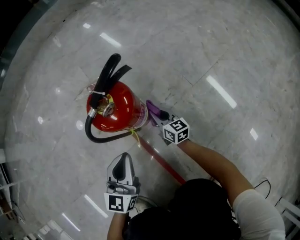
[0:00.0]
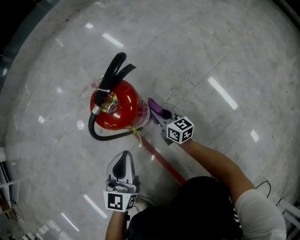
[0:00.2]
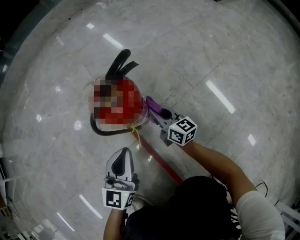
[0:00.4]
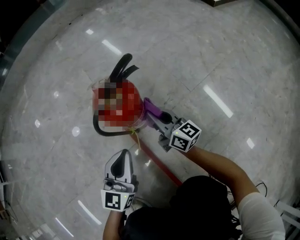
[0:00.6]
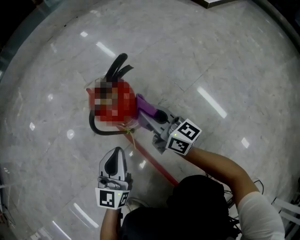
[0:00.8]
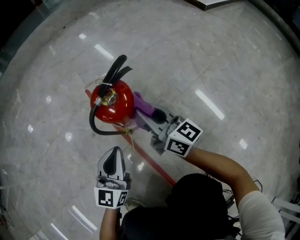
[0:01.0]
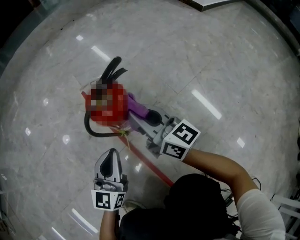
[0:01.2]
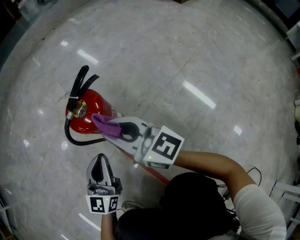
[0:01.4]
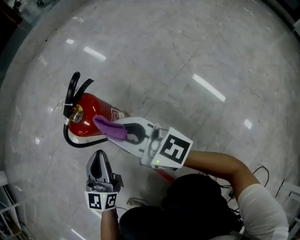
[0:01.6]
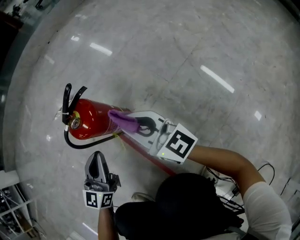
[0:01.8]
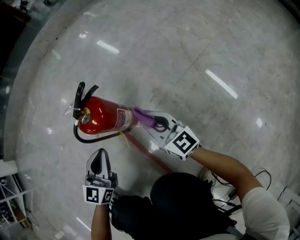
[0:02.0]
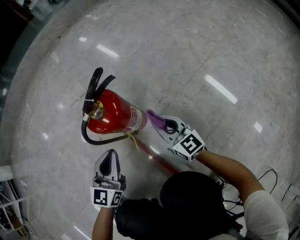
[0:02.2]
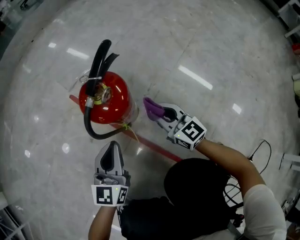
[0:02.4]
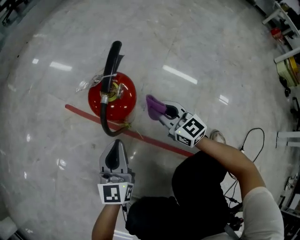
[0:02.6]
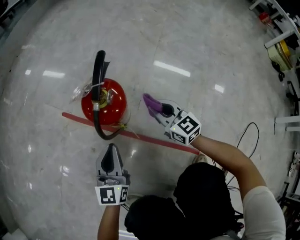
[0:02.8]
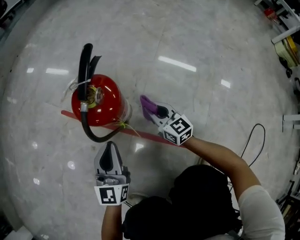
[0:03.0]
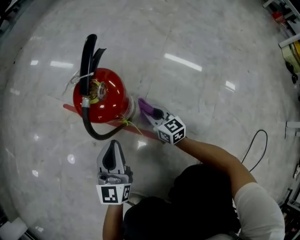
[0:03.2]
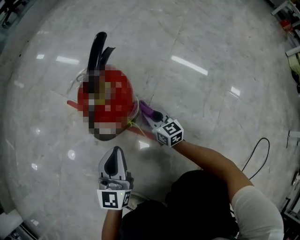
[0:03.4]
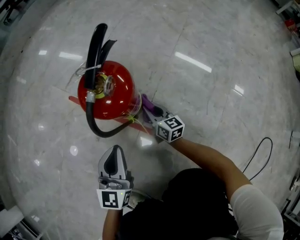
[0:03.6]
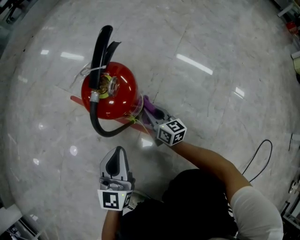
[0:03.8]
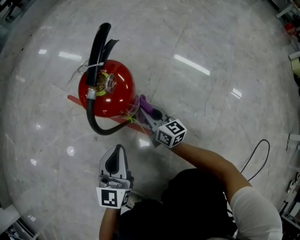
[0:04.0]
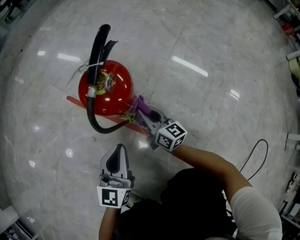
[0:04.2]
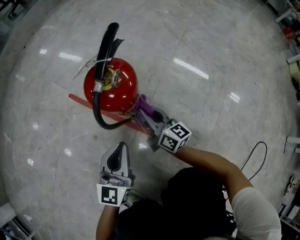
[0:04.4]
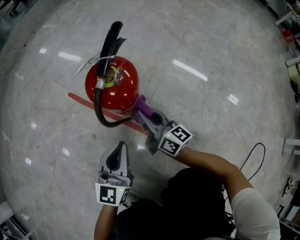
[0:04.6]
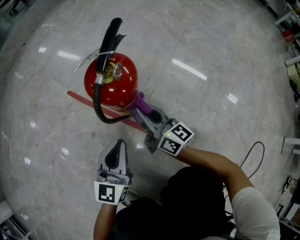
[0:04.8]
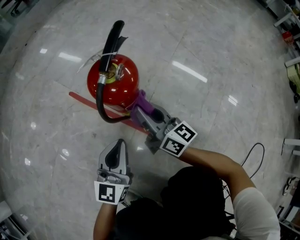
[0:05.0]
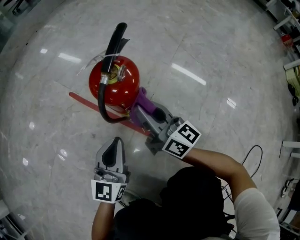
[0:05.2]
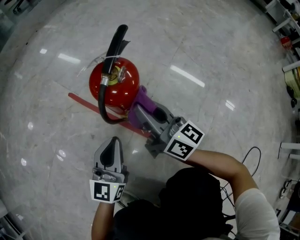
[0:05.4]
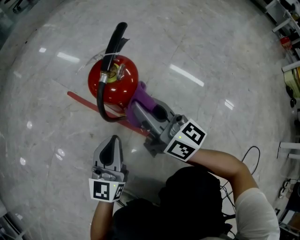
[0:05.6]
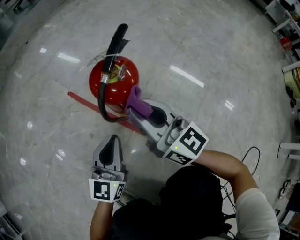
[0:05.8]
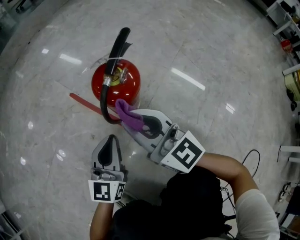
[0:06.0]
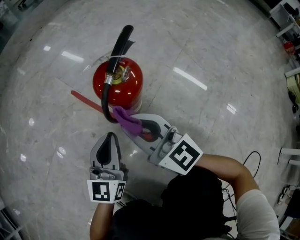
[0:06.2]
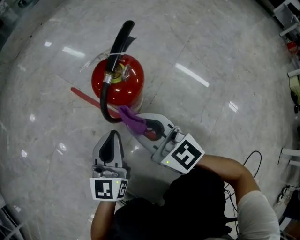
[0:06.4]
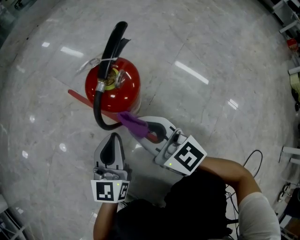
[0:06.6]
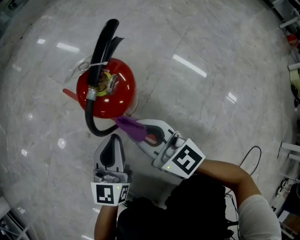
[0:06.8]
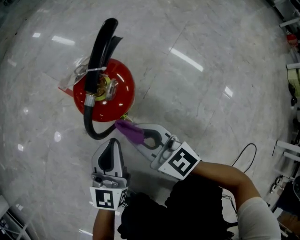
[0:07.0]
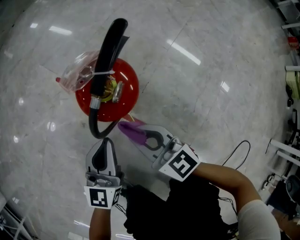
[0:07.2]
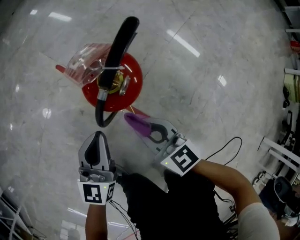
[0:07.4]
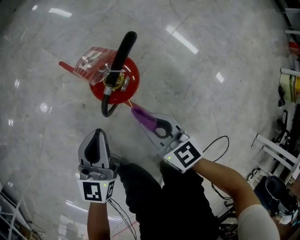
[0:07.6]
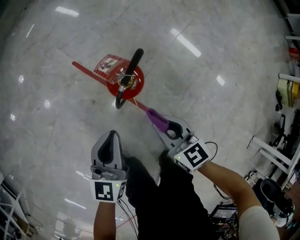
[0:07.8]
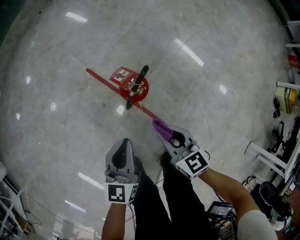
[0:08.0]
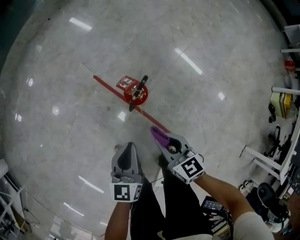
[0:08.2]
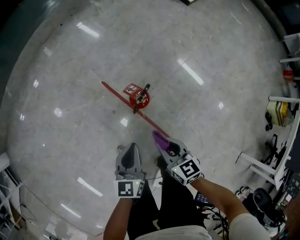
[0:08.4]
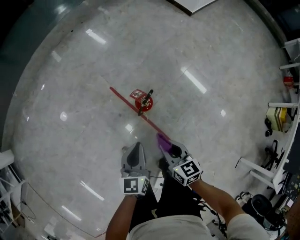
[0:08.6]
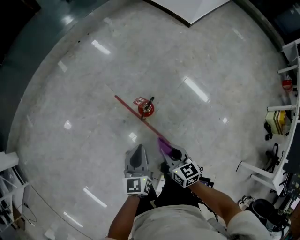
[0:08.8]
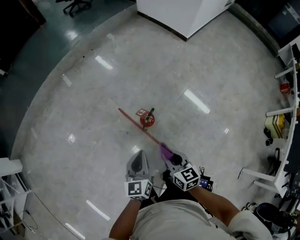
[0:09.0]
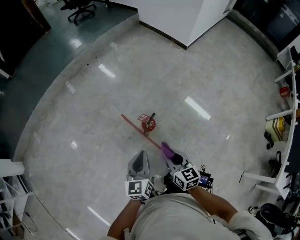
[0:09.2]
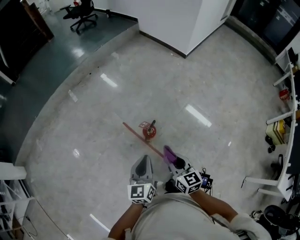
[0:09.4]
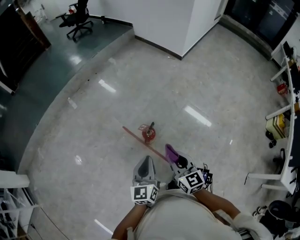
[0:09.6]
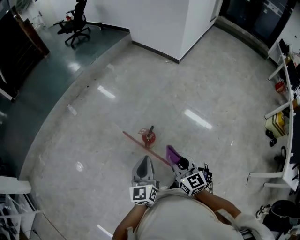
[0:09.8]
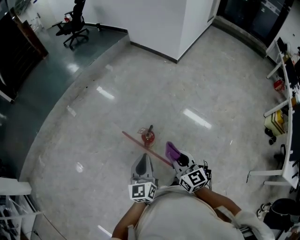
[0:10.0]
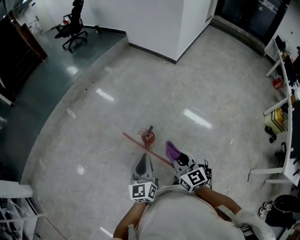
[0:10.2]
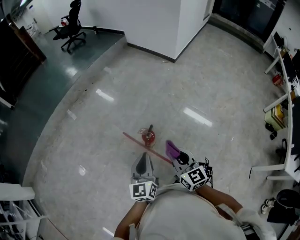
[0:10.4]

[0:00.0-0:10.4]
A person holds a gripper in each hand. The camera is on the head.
0:00.0 to 0:01.4: The right gripper is displaced upward by roughly 30 cm, and turns by about 30 degrees.
0:01.4 to 0:03.0: The left gripper moves about 5 cm, and swivels about 20 degrees. The right gripper travels downward by some 20 cm, and turns by about 50 degrees.
0:03.0 to 0:04.4: The right gripper heads to the left, covering roughly 5 cm, travels downward and back again, approximately 10 cm each way, and turns by approximately 30 degrees.
0:04.4 to 0:06.0: The right gripper travels upward by some 20 cm, and rotates some 30 degrees.
0:06.0 to 0:07.4: The right gripper travels downward by some 10 cm, and turns by some 30 degrees.
0:07.4 to 0:09.0: The two grippers go approximately 60 cm upward.
0:09.0 to 0:10.4: The two grippers go approximately 10 cm upward. The right gripper changes its angle by about 20 degrees.

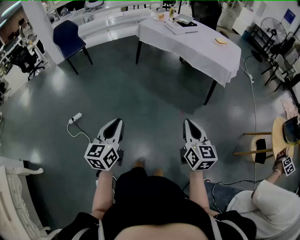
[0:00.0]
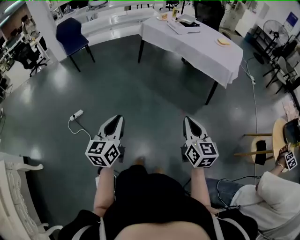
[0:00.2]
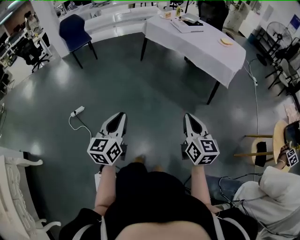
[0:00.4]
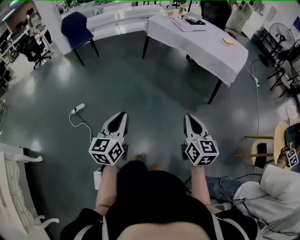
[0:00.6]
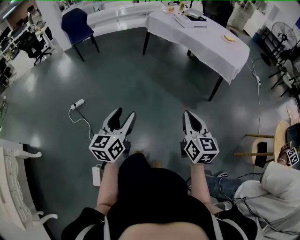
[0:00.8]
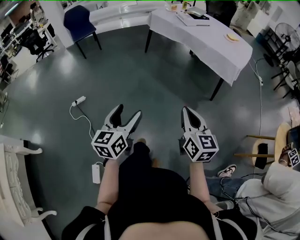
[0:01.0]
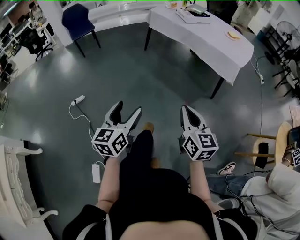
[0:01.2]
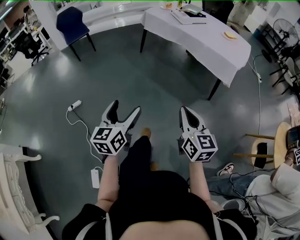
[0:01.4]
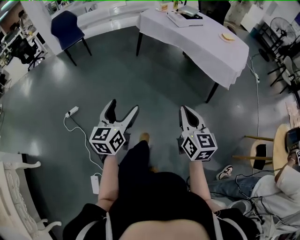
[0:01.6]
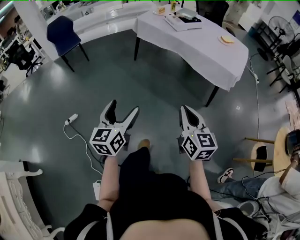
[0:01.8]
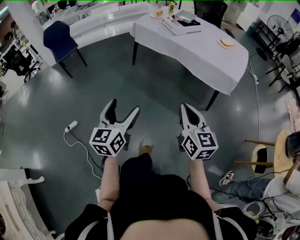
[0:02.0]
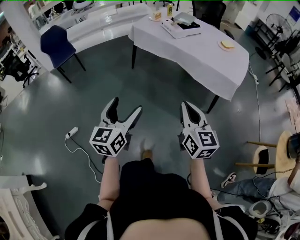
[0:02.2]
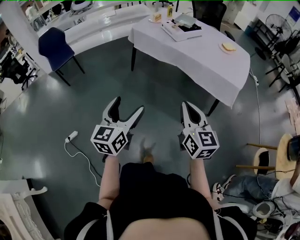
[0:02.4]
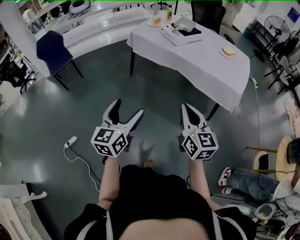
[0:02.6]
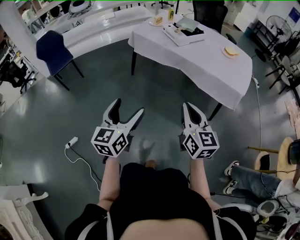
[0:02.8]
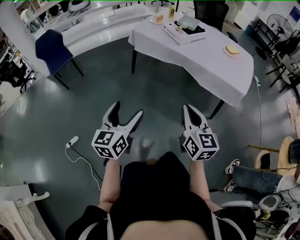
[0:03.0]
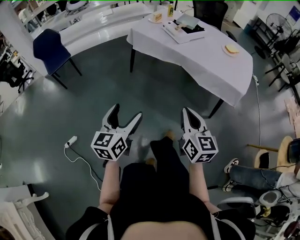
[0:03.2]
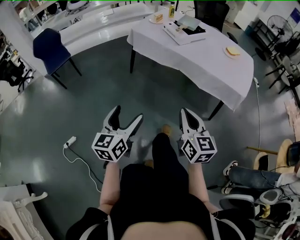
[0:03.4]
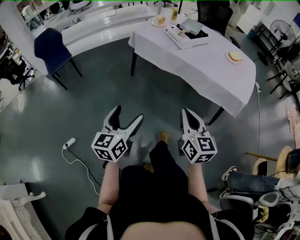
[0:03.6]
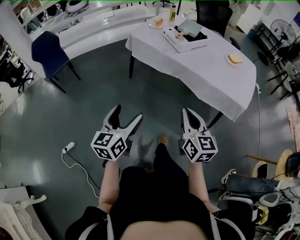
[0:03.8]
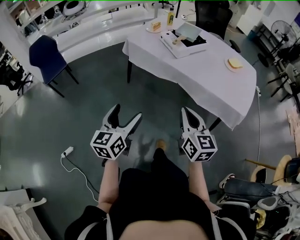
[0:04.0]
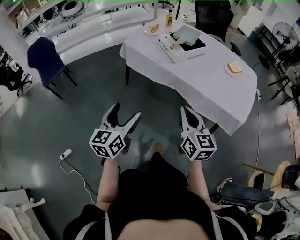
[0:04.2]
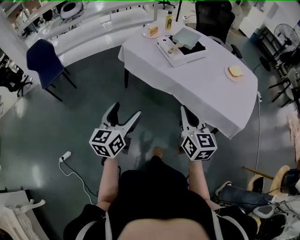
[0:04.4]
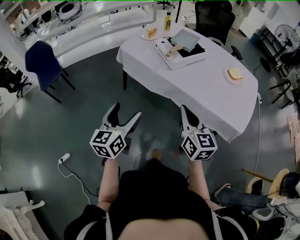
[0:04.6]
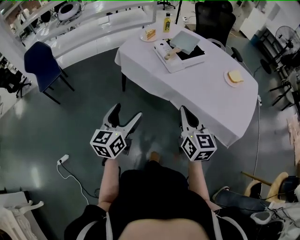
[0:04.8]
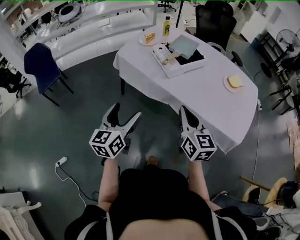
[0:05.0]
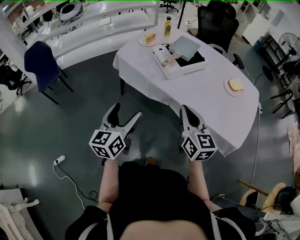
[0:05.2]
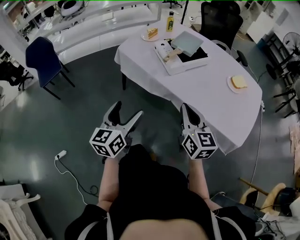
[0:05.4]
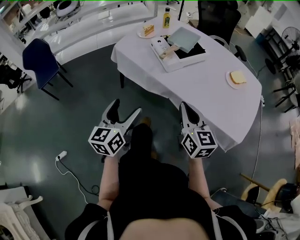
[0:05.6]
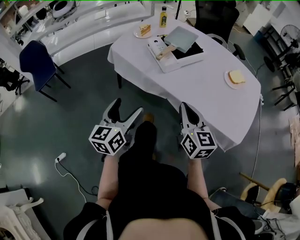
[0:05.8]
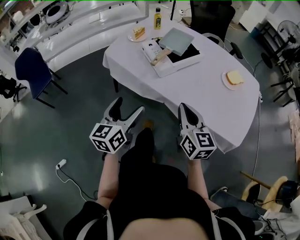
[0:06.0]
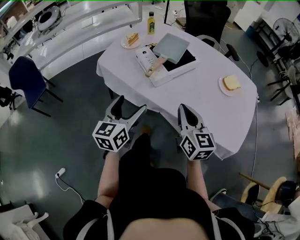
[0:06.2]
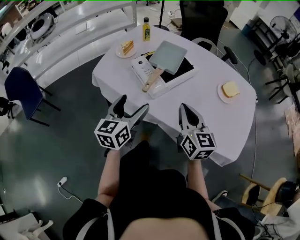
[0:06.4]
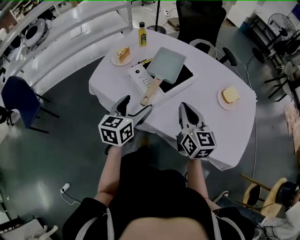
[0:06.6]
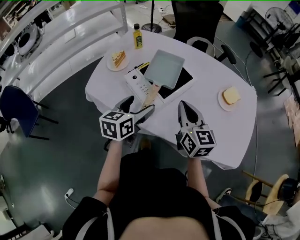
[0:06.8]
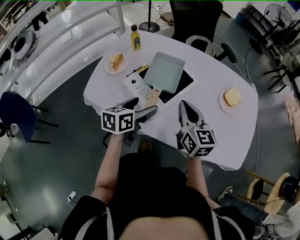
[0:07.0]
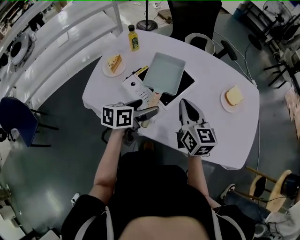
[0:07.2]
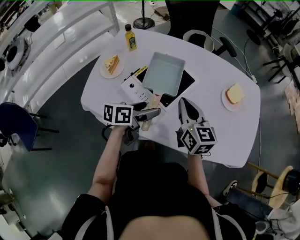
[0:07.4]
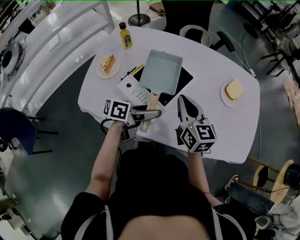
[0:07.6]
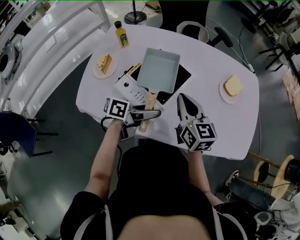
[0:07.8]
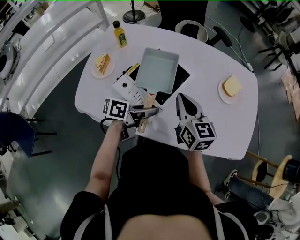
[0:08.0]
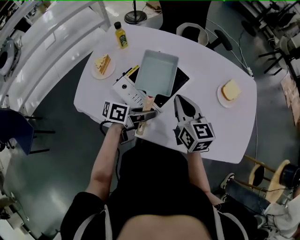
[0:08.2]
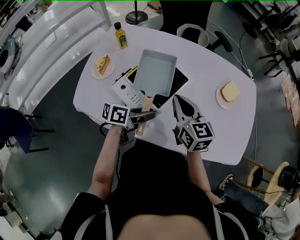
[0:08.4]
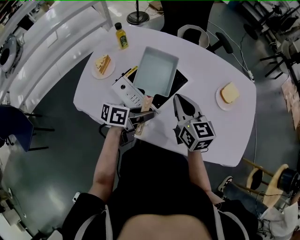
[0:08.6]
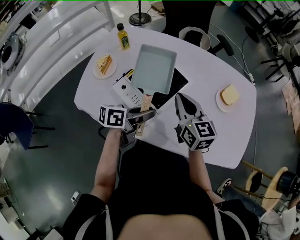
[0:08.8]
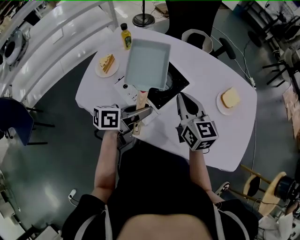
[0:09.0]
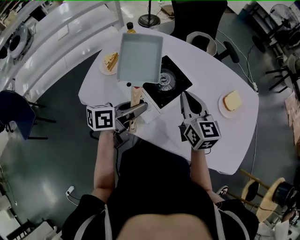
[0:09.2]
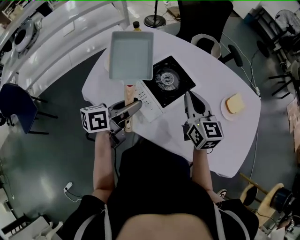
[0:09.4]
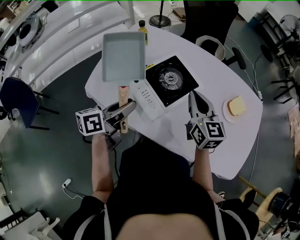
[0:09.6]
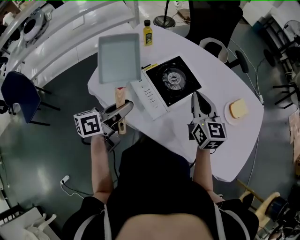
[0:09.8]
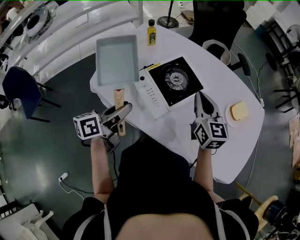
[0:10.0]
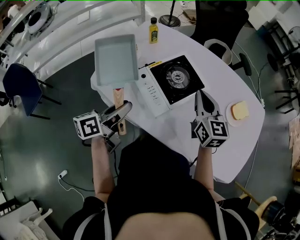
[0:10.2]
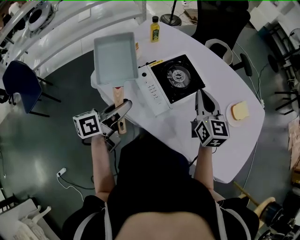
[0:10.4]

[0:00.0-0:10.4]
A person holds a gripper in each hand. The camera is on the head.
0:00.0 to 0:01.4: The right gripper goes approximately 5 cm forward, while the left gripper goes some 10 cm to the right and forward, and opens.
0:01.4 to 0:03.0: Both grippers move forward, some 35 cm.
0:03.0 to 0:04.4: Both grippers move forward, some 25 cm.
0:04.4 to 0:06.0: Both grippers travel together forward and to the right, roughly 20 cm.
0:06.0 to 0:07.4: The right gripper moves some 35 cm. The left gripper ends up some 40 cm from where it was, and turns by roughly 60 degrees.
0:07.4 to 0:09.0: The left gripper changes place by roughly 5 cm, and closes up.
0:09.0 to 0:10.4: The left gripper is displaced to the left and backward by about 15 cm, and changes its angle by some 30 degrees.

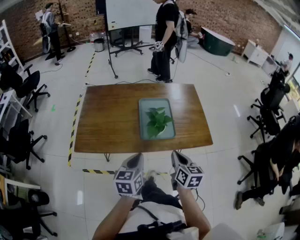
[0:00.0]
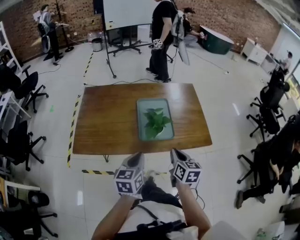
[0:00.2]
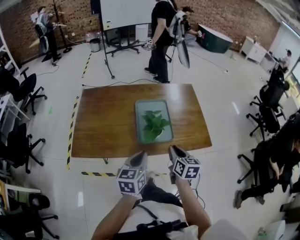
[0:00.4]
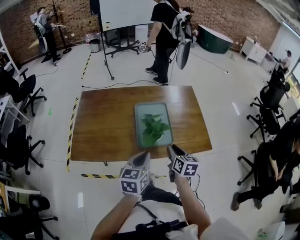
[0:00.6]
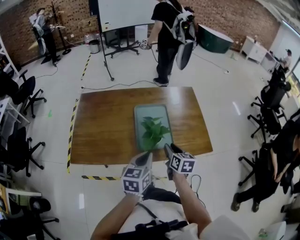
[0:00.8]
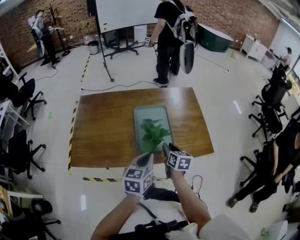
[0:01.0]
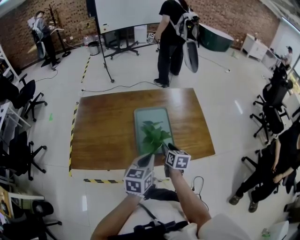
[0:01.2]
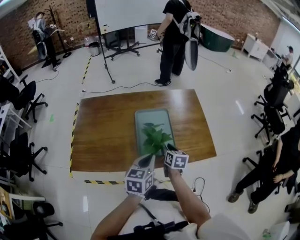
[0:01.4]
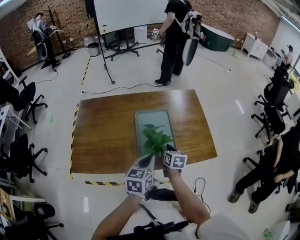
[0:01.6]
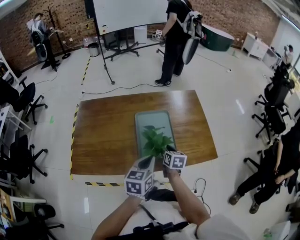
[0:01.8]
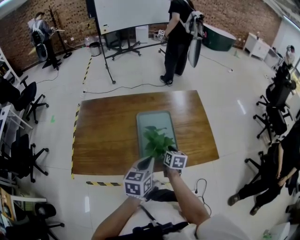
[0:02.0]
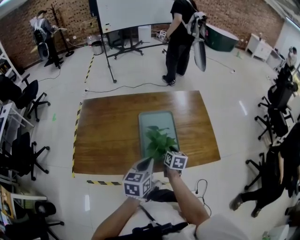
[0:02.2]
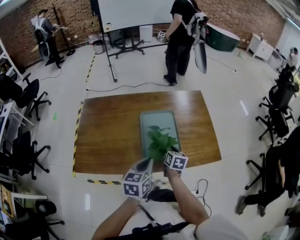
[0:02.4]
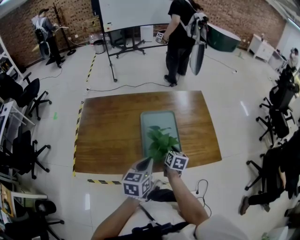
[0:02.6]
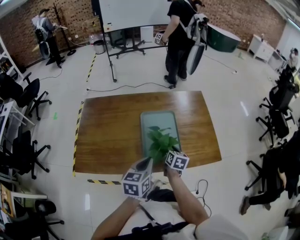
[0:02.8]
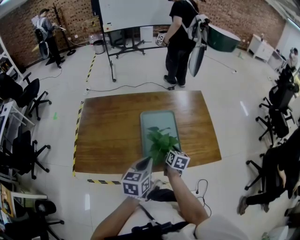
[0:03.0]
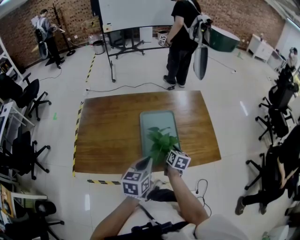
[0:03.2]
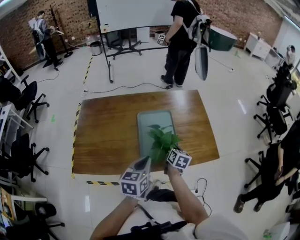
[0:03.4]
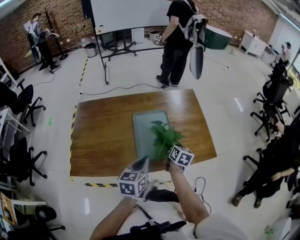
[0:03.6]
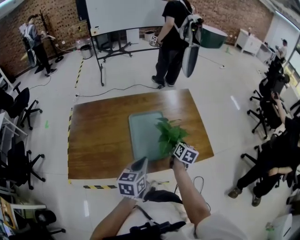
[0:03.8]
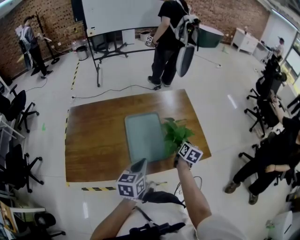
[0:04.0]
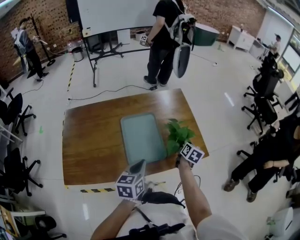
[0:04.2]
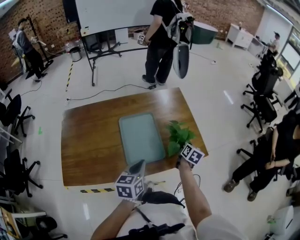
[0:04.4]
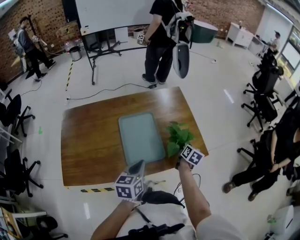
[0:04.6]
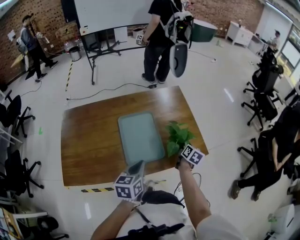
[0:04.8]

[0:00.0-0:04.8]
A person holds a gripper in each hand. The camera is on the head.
0:00.0 to 0:01.6: The right gripper travels forward and downward by approximately 25 cm, and opens its fingers. The left gripper goes roughly 15 cm forward and to the right.
0:01.6 to 0:03.2: The right gripper closes its fingers.
0:03.2 to 0:04.8: The left gripper ends up roughly 5 cm from where it was. The right gripper travels to the right by approximately 20 cm, and changes its angle by some 20 degrees.
